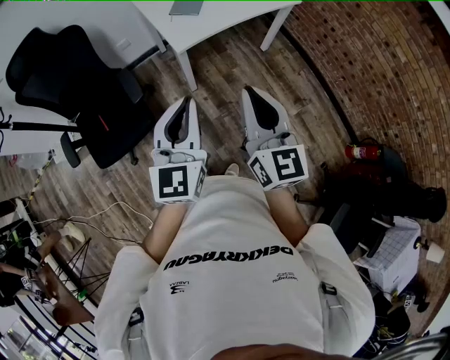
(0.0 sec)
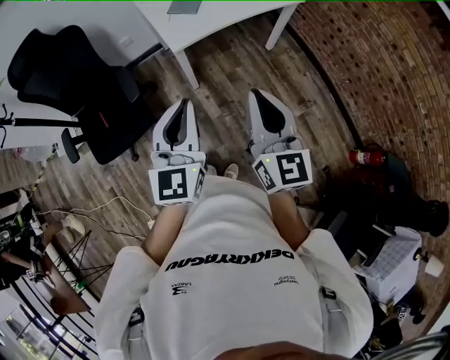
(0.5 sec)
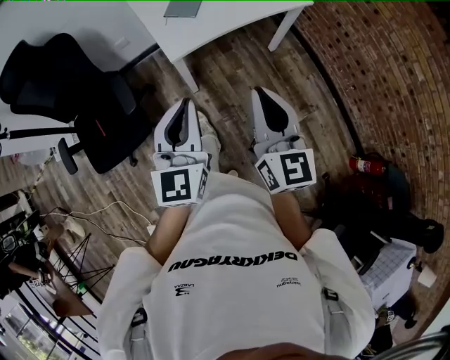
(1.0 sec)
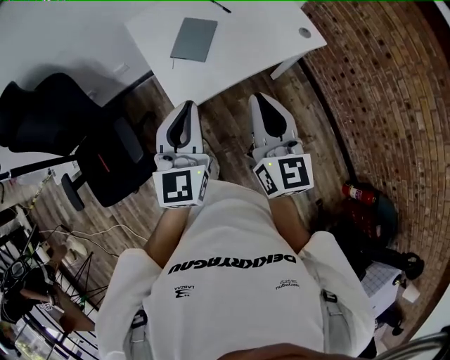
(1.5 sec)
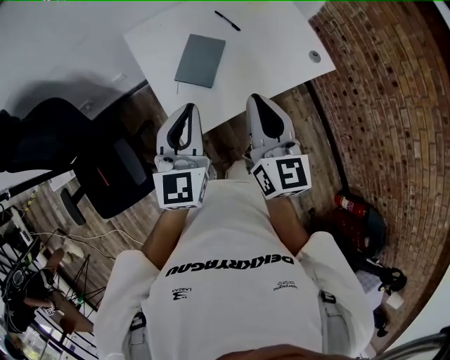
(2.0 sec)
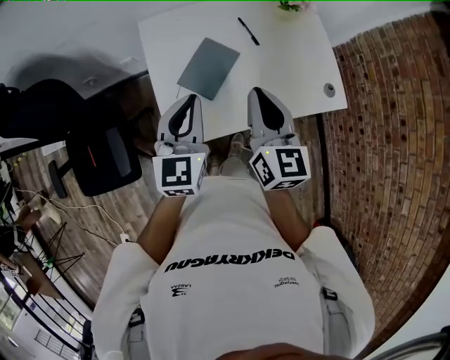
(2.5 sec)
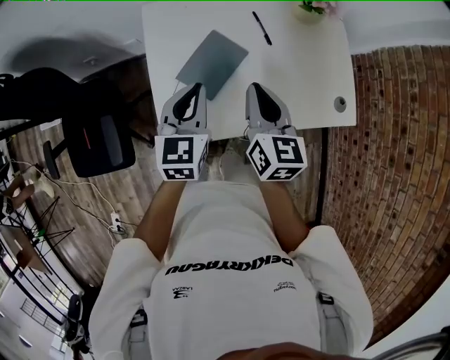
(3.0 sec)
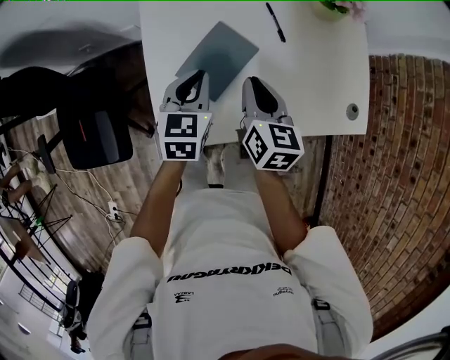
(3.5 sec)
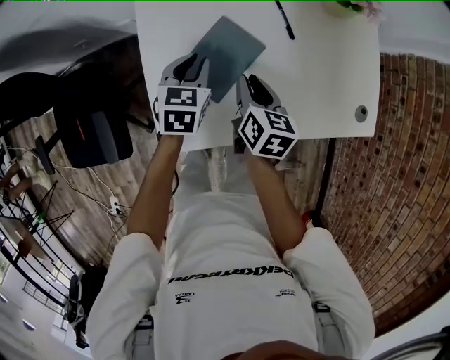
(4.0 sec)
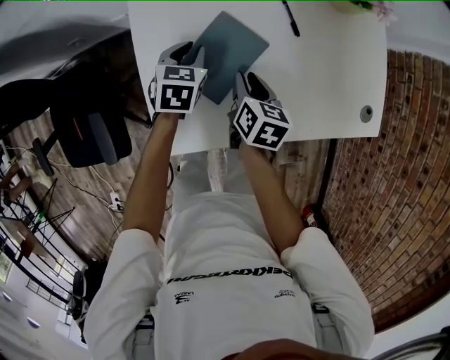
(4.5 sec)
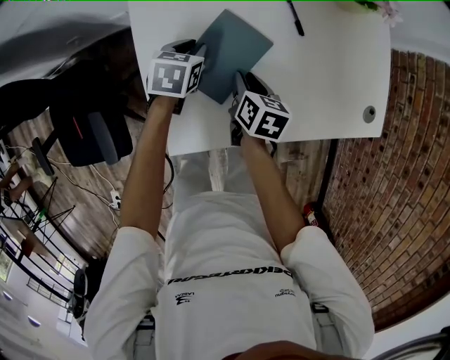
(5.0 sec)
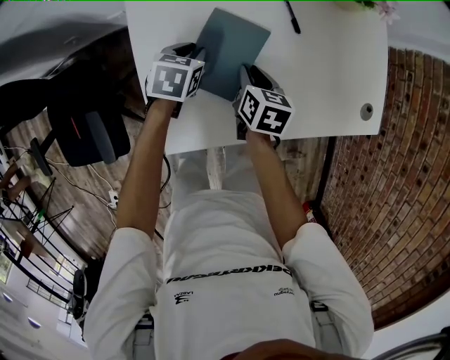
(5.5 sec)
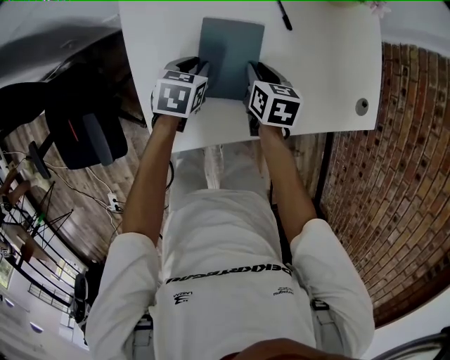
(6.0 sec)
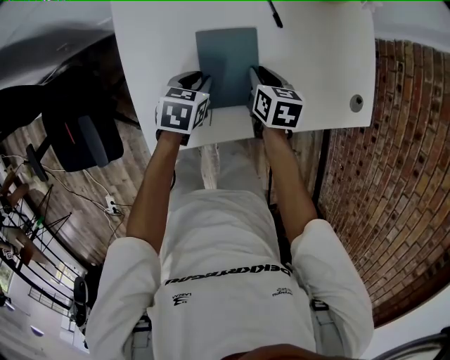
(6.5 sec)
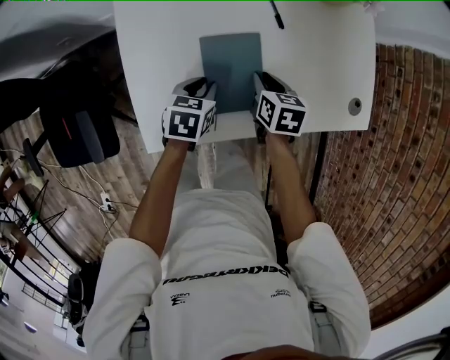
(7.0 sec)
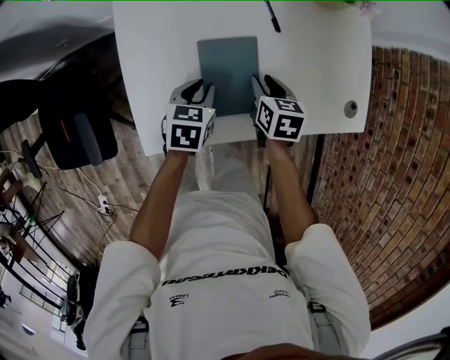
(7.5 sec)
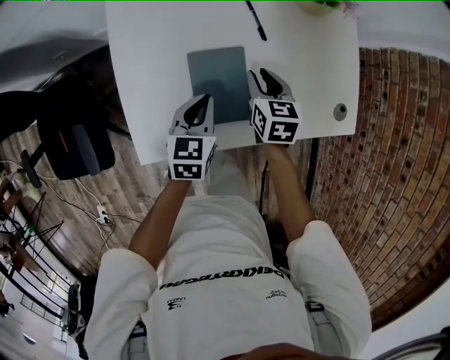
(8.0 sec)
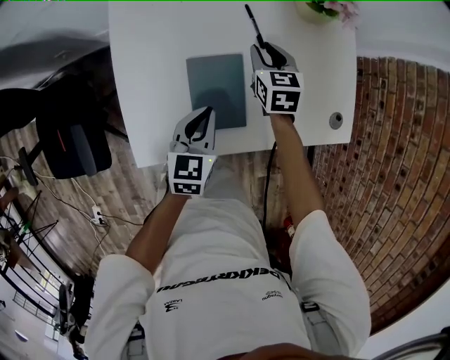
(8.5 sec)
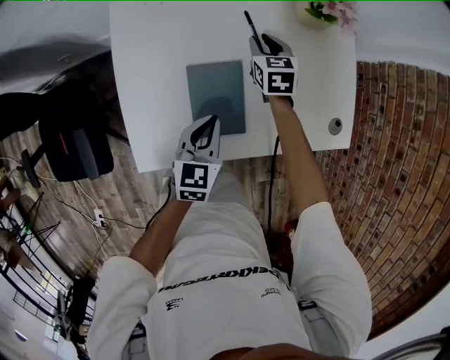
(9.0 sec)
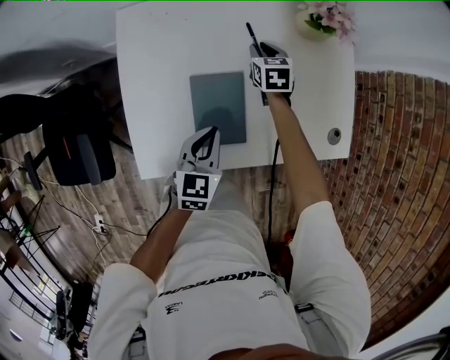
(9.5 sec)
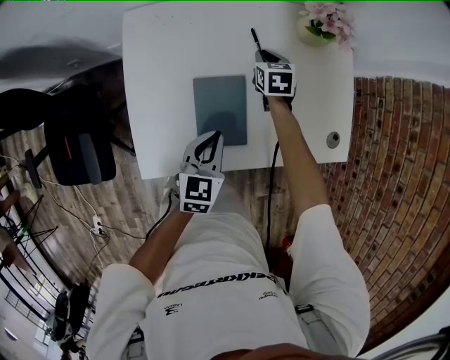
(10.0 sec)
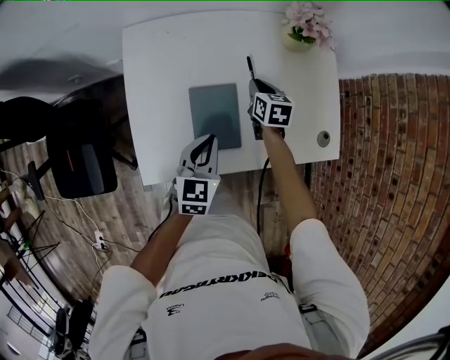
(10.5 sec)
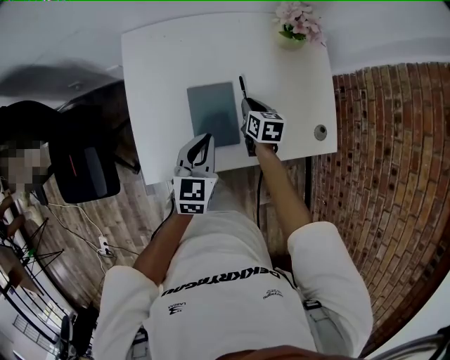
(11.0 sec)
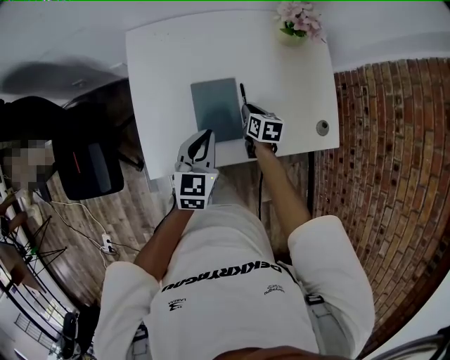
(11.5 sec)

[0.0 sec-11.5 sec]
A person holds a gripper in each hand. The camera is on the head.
0.0 sec to 2.0 sec: The two grippers travel together, forward, roughly 50 cm.
2.0 sec to 4.0 sec: Both grippers travel together downward and forward, approximately 40 cm. The right gripper points its fingers about 30 degrees further downward. The left gripper tips its fingers downward by roughly 40 degrees.
4.0 sec to 6.0 sec: The two grippers go roughly 10 cm downward. The left gripper turns by about 20 degrees.
6.0 sec to 7.5 sec: Both grippers travel together to the right, some 5 cm.
7.5 sec to 9.5 sec: The left gripper goes roughly 10 cm upward and to the right, turns by about 20 degrees, and closes. The right gripper travels forward by some 20 cm, and swivels about 20 degrees.
9.5 sec to 11.5 sec: The right gripper shifts about 20 cm backward, and turns by approximately 30 degrees, while the left gripper moves upward, some 10 cm.

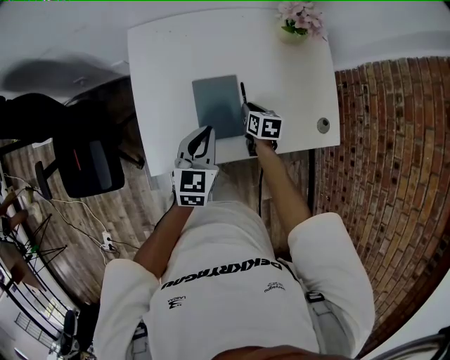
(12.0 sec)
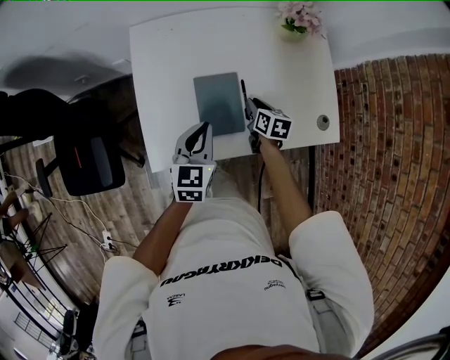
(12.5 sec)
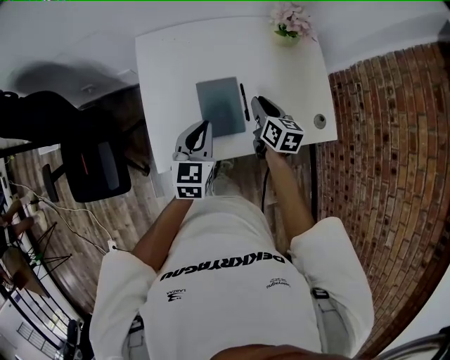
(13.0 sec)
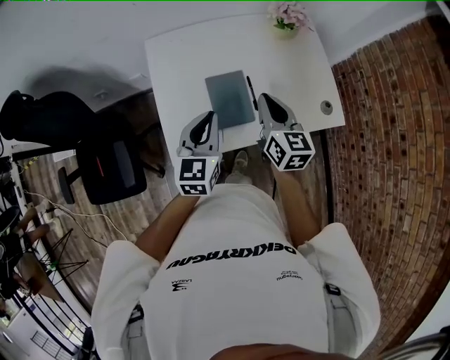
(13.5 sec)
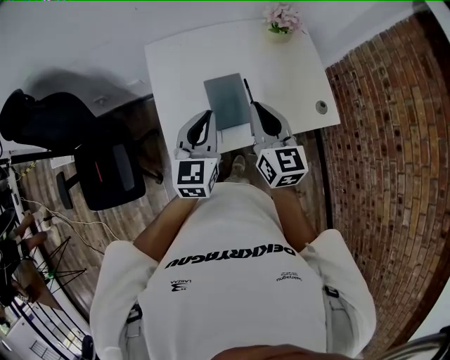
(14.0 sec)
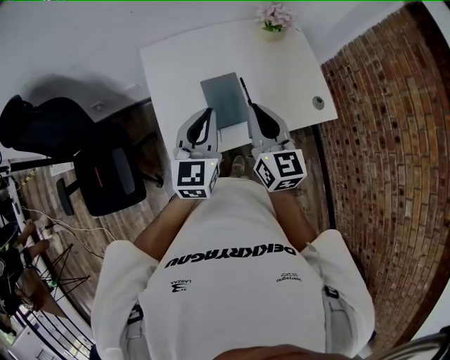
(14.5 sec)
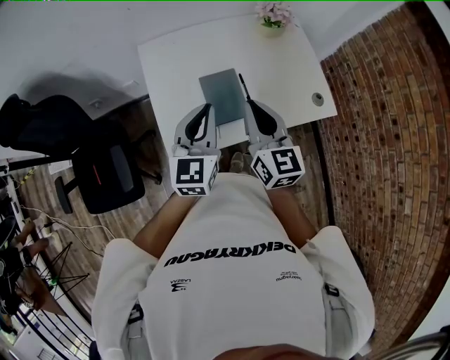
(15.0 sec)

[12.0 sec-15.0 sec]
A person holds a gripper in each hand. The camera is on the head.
12.0 sec to 13.5 sec: The right gripper heads upward, covering some 30 cm, and tips its fingers upward by some 40 degrees; the left gripper travels upward by roughly 10 cm.
13.5 sec to 15.0 sec: The right gripper goes some 10 cm backward and upward. The left gripper travels upward by some 5 cm.

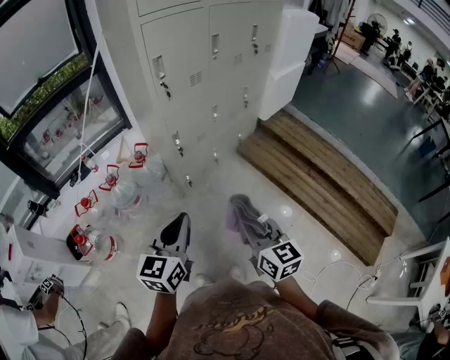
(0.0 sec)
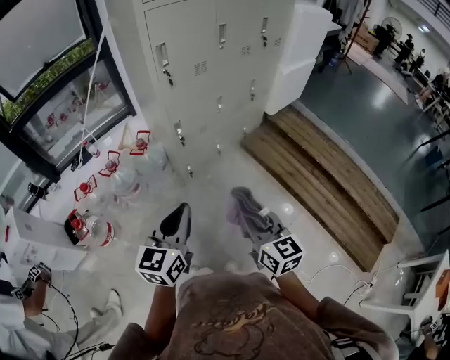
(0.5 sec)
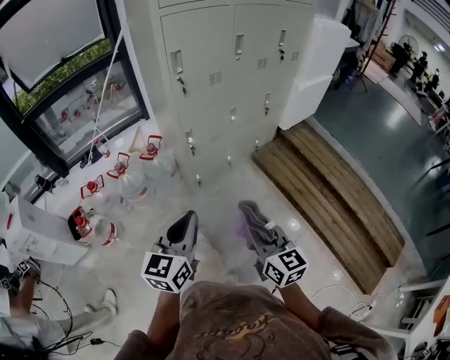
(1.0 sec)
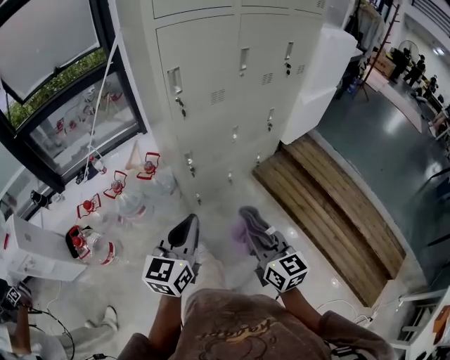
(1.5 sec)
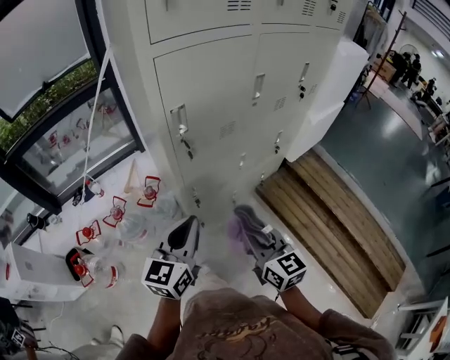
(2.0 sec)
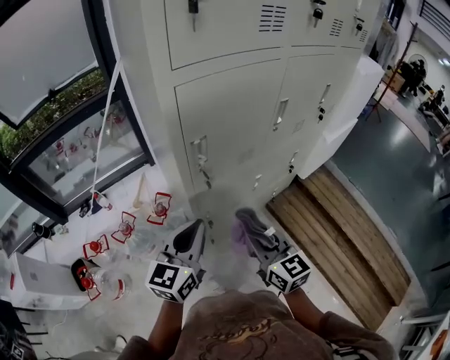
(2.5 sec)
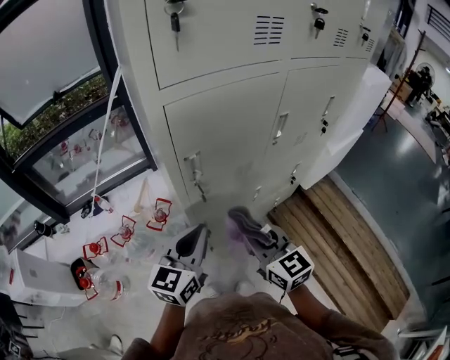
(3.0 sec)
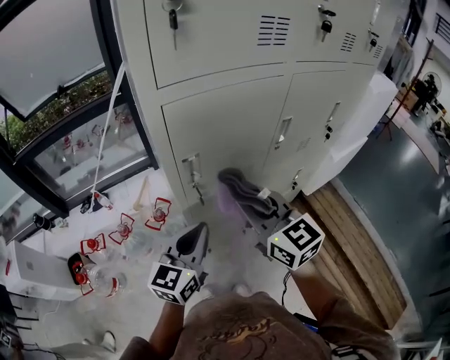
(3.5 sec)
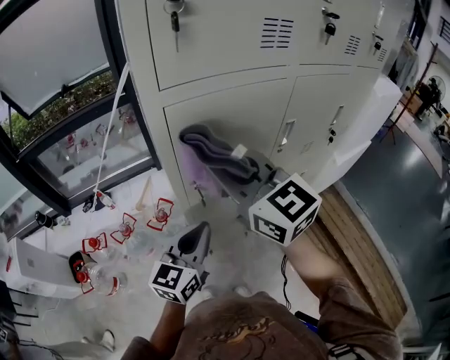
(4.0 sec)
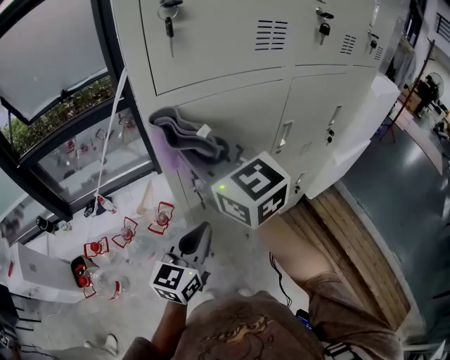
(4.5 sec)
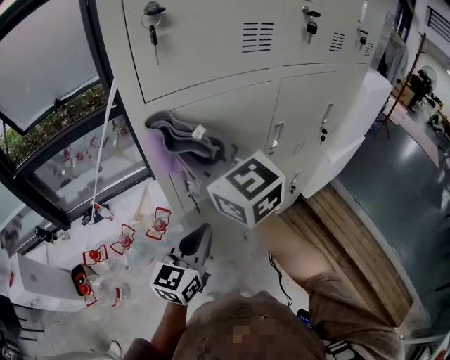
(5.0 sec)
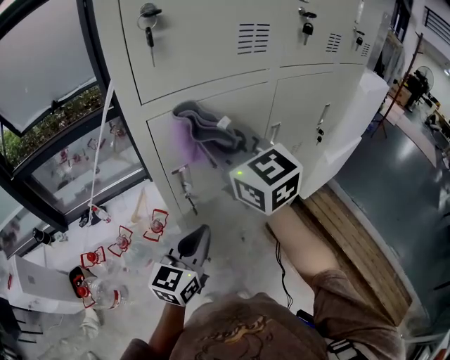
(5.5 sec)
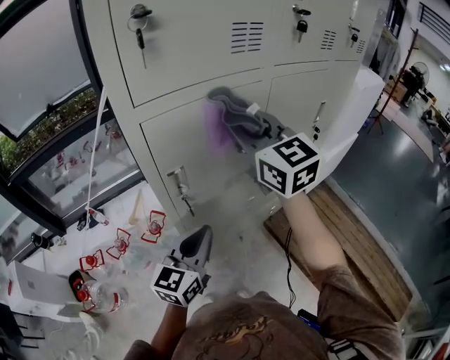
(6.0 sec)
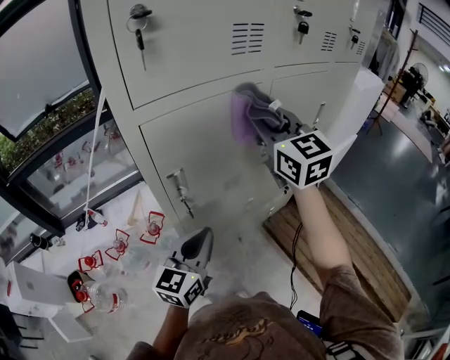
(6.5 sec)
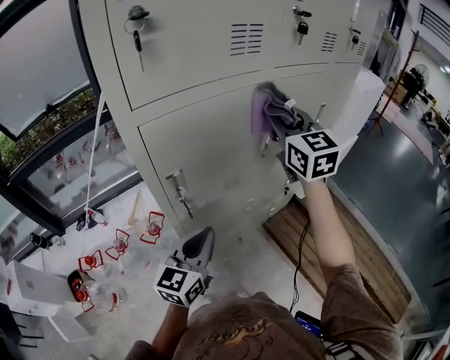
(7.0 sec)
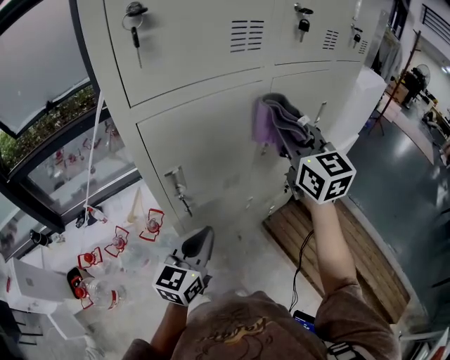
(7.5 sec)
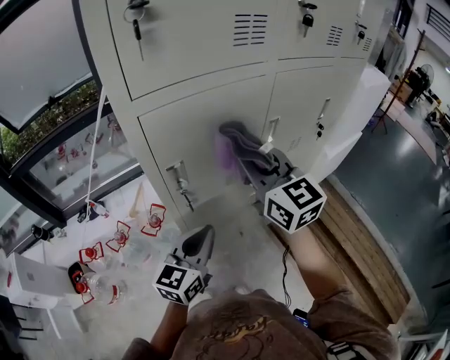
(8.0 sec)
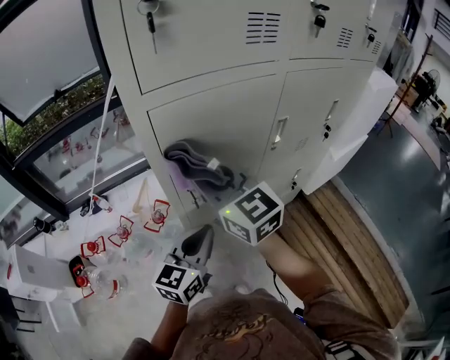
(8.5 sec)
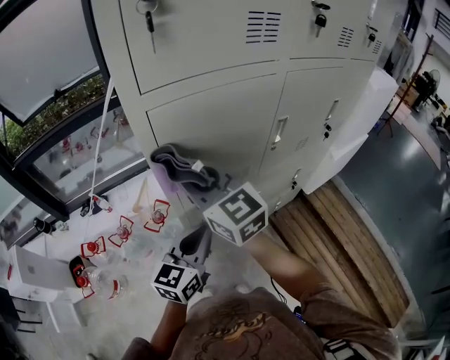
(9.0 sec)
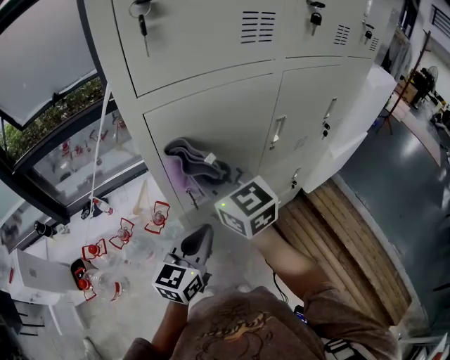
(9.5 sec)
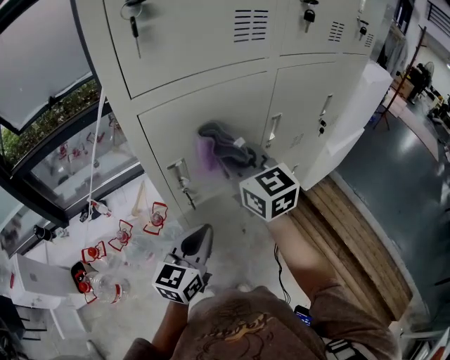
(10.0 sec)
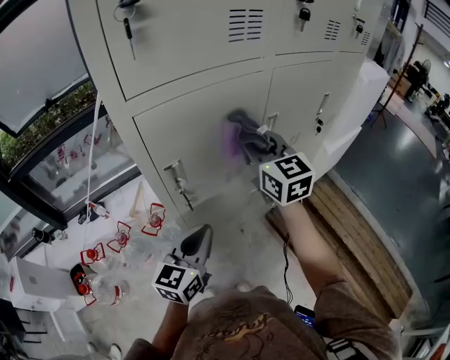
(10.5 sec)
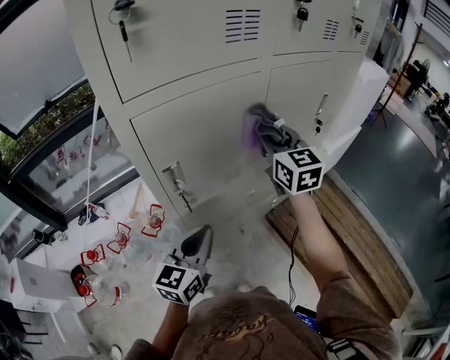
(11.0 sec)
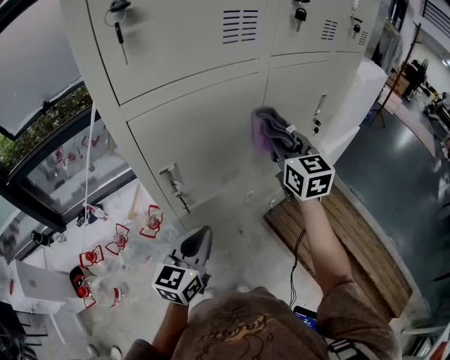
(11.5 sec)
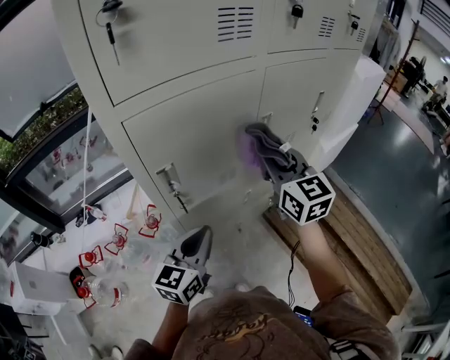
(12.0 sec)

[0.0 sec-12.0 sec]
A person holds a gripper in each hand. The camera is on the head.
0.0 sec to 2.0 sec: The two grippers go about 30 cm forward.
2.0 sec to 4.0 sec: The left gripper goes about 10 cm forward. The right gripper goes roughly 35 cm upward and forward, and turns by about 30 degrees.
4.0 sec to 6.0 sec: The right gripper moves to the right and forward, some 15 cm.
6.0 sec to 8.0 sec: The right gripper moves downward, approximately 5 cm, and moves about 10 cm to the right and comes back.
8.0 sec to 10.0 sec: The right gripper travels to the left and back again, approximately 15 cm each way.
10.0 sec to 12.0 sec: The right gripper goes about 15 cm to the right.
